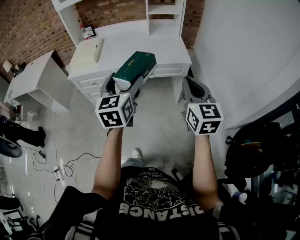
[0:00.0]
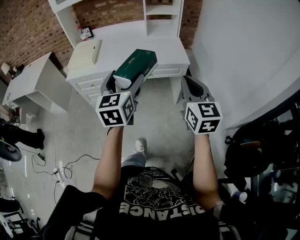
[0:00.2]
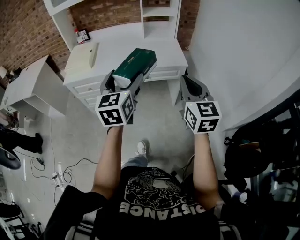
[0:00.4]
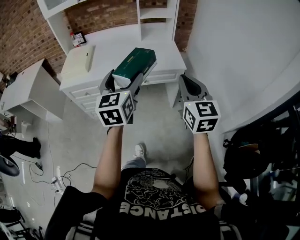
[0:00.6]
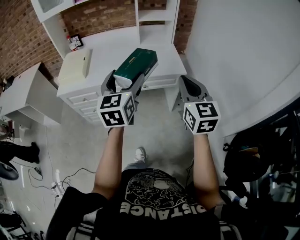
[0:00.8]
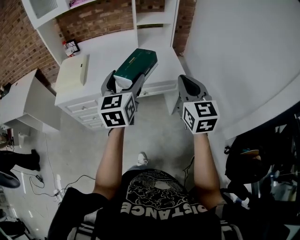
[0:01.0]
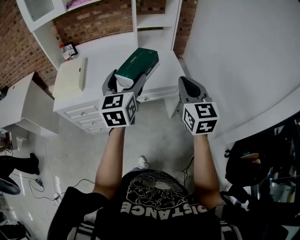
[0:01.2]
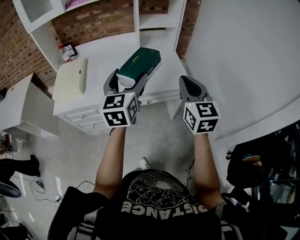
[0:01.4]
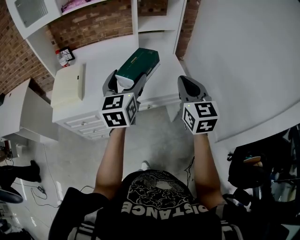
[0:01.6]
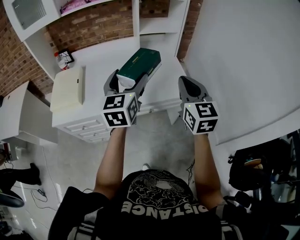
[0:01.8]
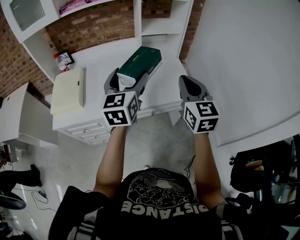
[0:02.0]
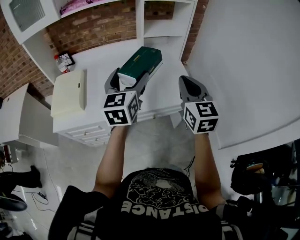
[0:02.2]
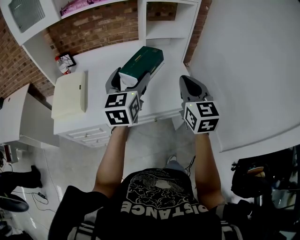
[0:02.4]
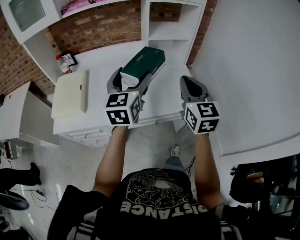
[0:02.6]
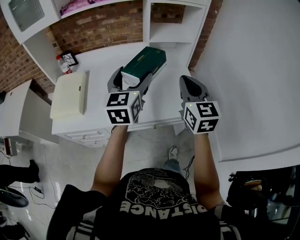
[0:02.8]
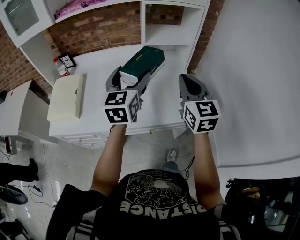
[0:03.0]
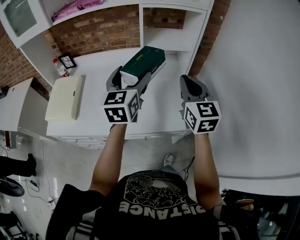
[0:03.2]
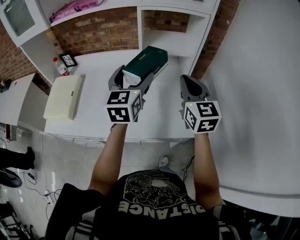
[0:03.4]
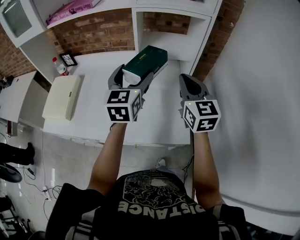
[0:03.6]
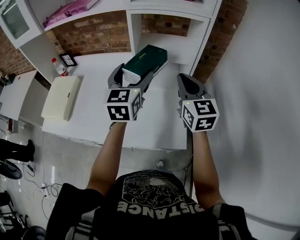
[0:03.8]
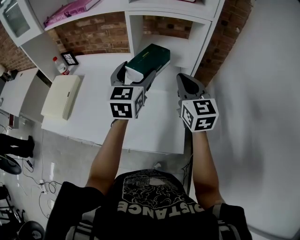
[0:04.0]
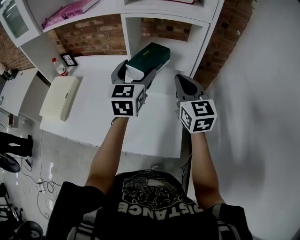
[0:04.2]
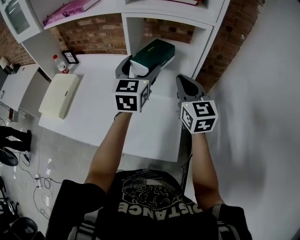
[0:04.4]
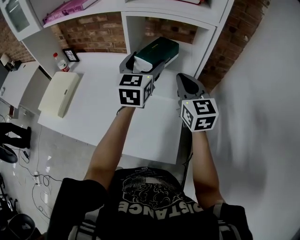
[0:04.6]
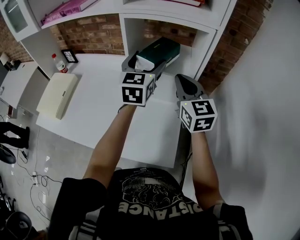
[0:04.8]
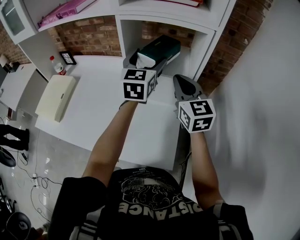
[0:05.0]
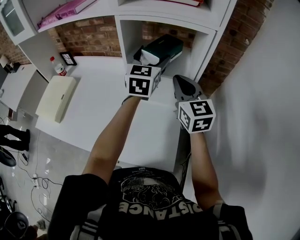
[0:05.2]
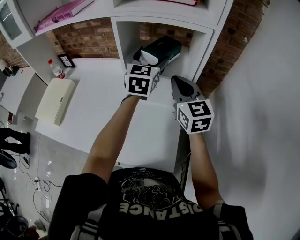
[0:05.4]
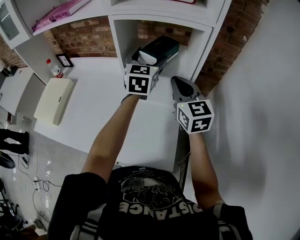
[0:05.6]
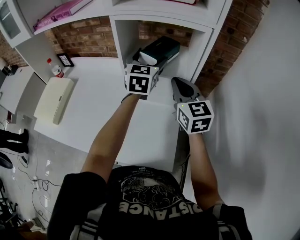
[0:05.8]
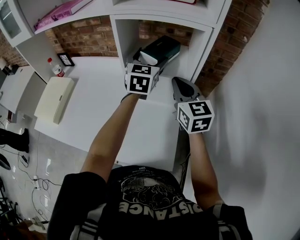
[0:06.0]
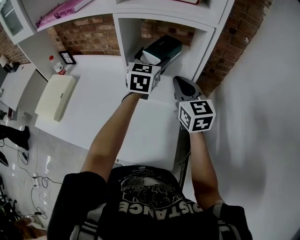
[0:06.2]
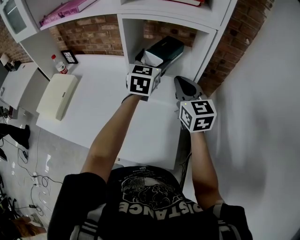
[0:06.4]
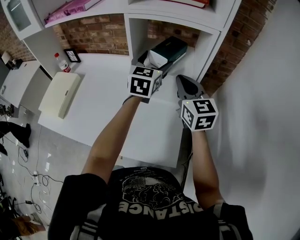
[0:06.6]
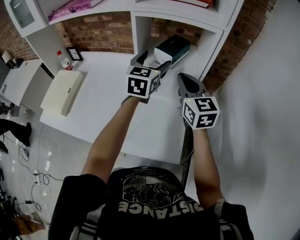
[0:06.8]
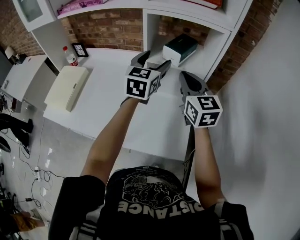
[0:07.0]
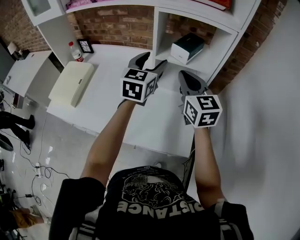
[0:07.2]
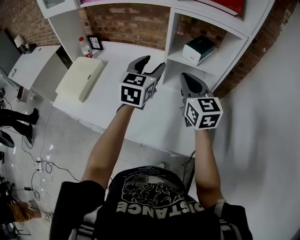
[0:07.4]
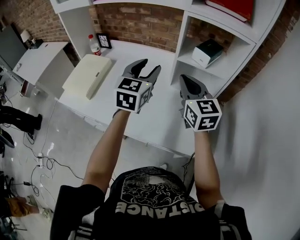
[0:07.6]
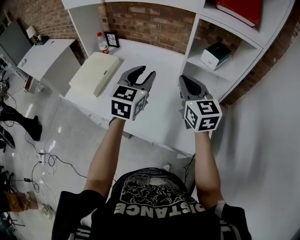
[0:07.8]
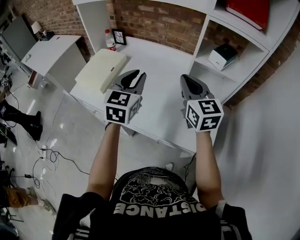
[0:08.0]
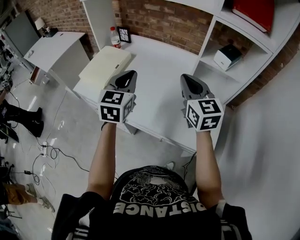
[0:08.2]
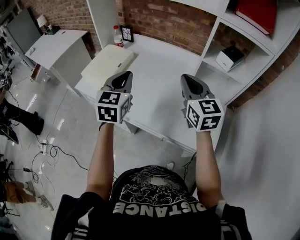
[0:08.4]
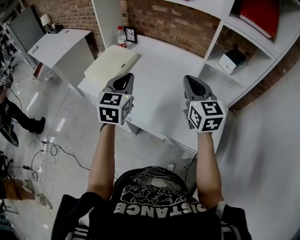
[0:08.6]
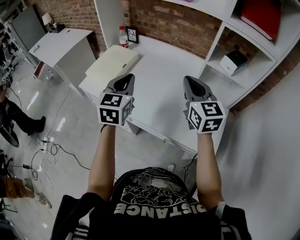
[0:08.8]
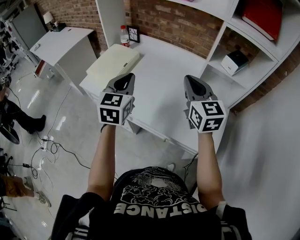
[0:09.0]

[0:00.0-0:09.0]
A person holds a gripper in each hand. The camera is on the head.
0.0 to 1.6 s: Both grippers travel together forward, some 30 cm.
1.6 to 3.0 s: Both grippers move forward, some 20 cm.
3.0 to 4.4 s: Both grippers move forward and to the right, about 25 cm.
4.4 to 6.0 s: The right gripper ends up some 5 cm from where it was. The left gripper shifts some 10 cm forward and to the right.
6.0 to 7.6 s: Both grippers move to the left and backward, roughly 25 cm. The left gripper closes its fingers.
7.6 to 9.0 s: The right gripper is displaced to the left by roughly 10 cm; the left gripper heads to the left, covering some 20 cm, and closes.

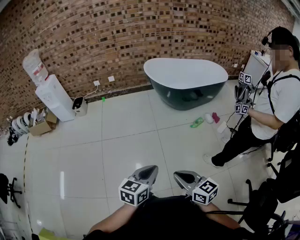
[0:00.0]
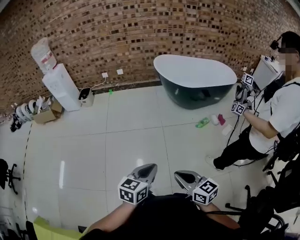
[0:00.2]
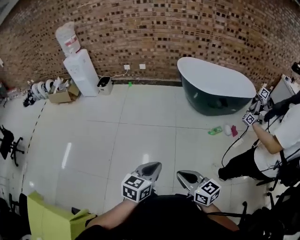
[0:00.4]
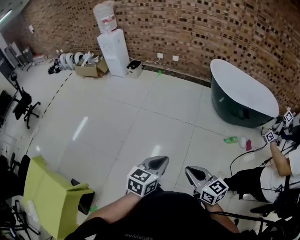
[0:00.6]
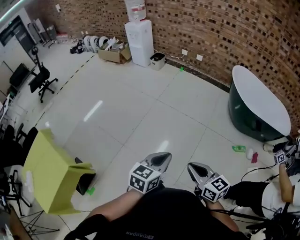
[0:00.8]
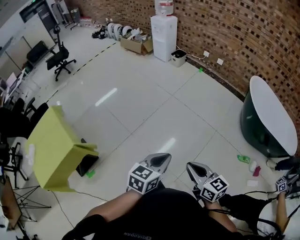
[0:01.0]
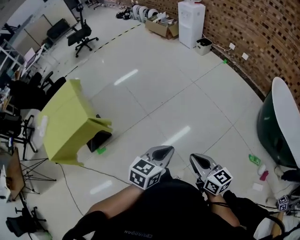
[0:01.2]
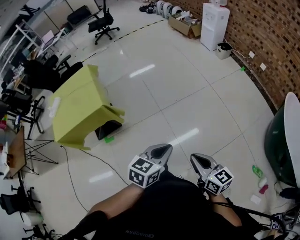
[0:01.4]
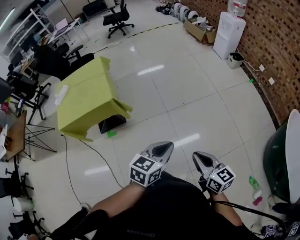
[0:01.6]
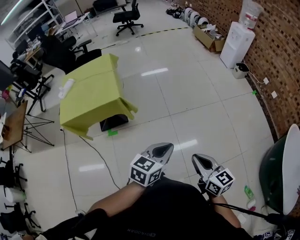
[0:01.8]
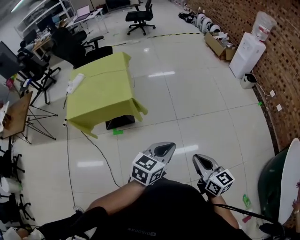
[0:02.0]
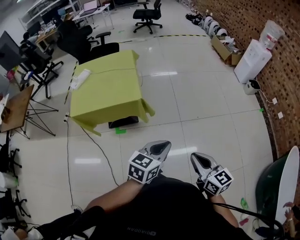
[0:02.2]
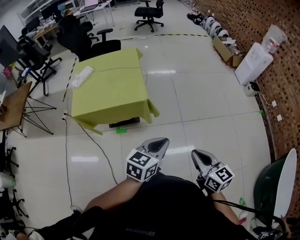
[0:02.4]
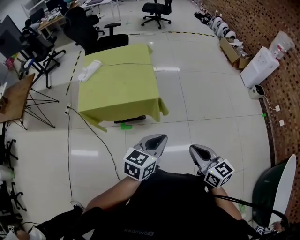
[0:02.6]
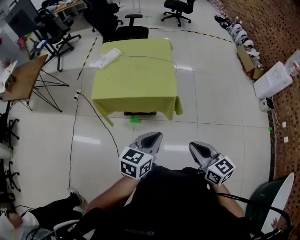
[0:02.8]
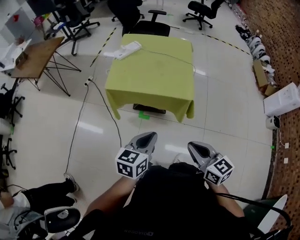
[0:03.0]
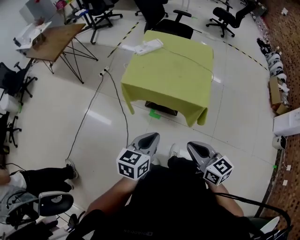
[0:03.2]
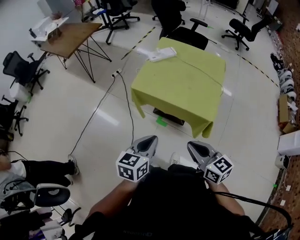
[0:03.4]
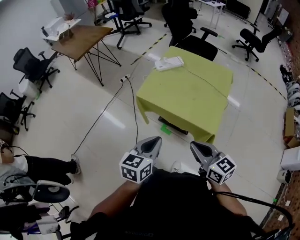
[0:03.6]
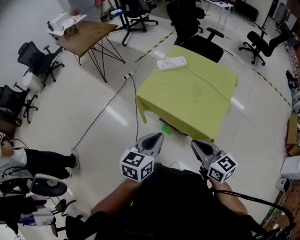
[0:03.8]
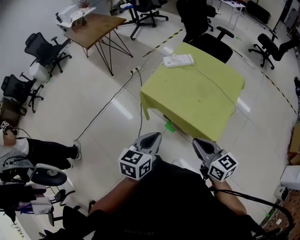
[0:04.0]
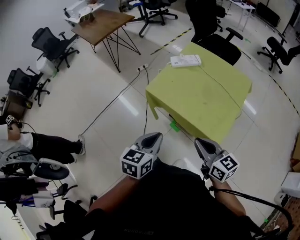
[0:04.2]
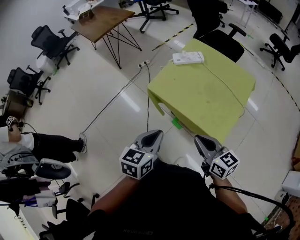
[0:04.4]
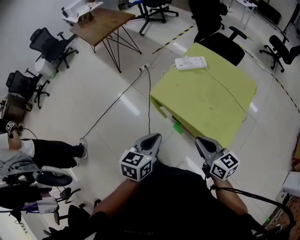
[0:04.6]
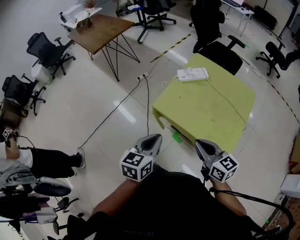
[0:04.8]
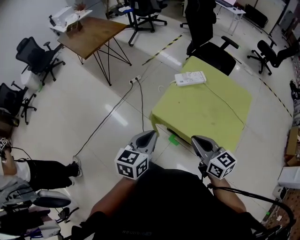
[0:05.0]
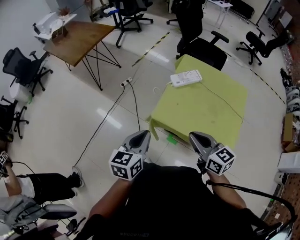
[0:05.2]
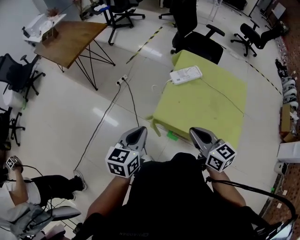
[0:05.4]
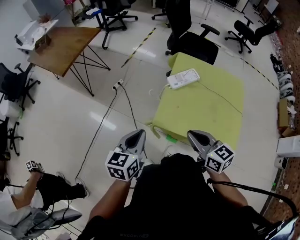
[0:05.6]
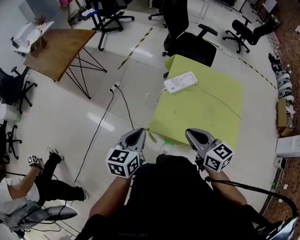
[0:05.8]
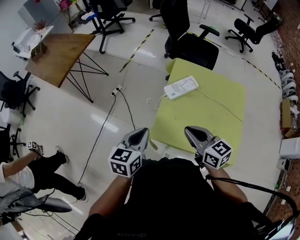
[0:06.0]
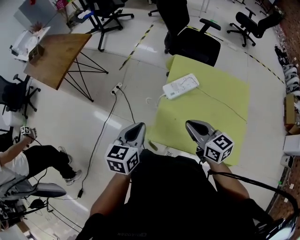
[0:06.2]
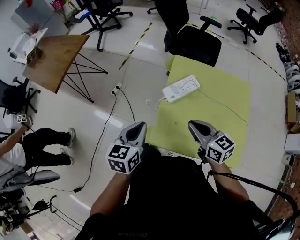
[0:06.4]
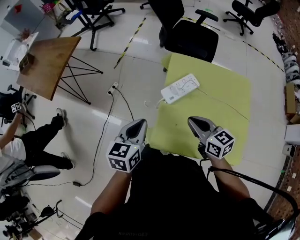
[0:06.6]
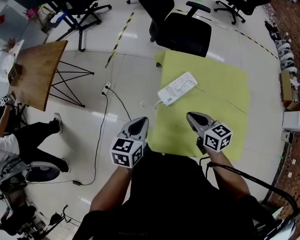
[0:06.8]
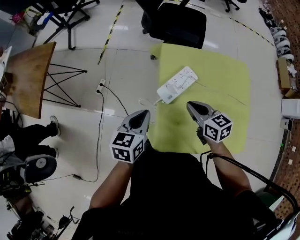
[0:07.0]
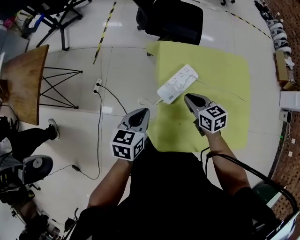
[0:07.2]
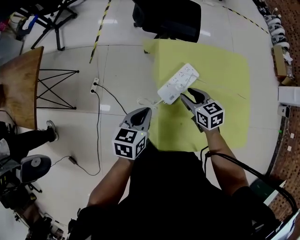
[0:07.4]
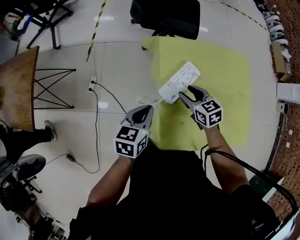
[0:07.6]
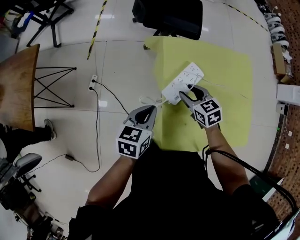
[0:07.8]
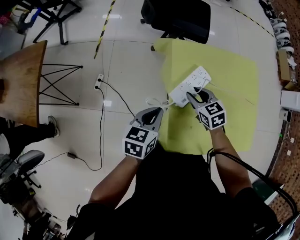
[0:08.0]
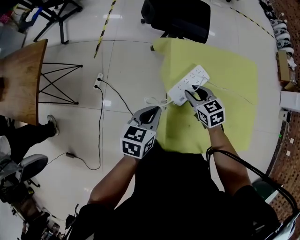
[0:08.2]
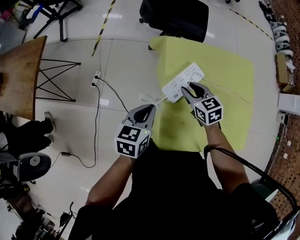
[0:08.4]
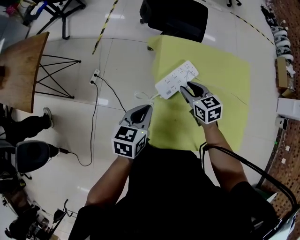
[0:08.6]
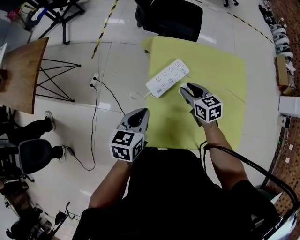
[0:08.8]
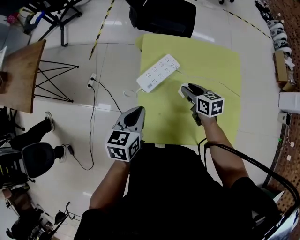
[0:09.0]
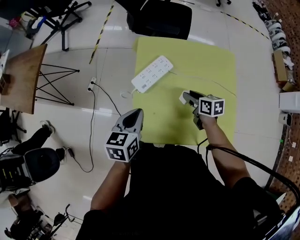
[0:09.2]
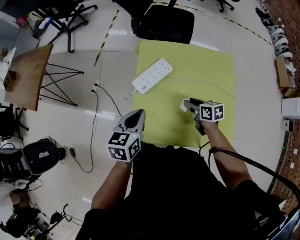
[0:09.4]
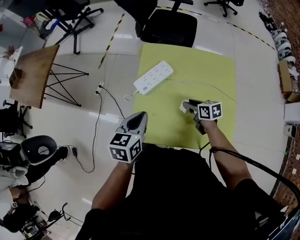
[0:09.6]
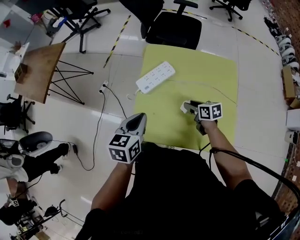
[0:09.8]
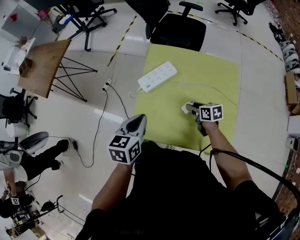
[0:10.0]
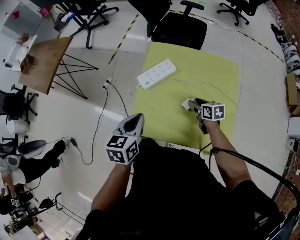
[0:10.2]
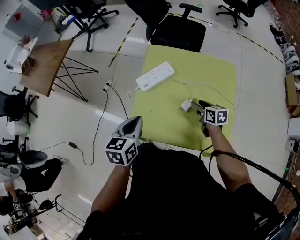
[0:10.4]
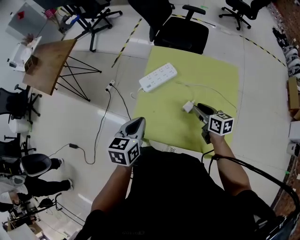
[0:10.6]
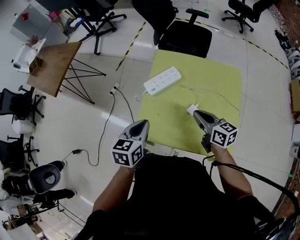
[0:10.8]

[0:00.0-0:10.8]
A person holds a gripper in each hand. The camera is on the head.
0.0 to 1.6 s: The right gripper shifts by roughly 25 cm, and turns by some 70 degrees, while the left gripper ends up some 30 cm from where it was, and swivels roughly 70 degrees.
1.6 to 3.0 s: Both grippers are carried about 50 cm. The right gripper changes its angle by roughly 40 degrees. Meanwhile the left gripper changes its angle by approximately 40 degrees.
3.0 to 4.6 s: The left gripper shifts by roughly 20 cm, and swivels approximately 30 degrees; the right gripper ends up some 25 cm from where it was, and turns by about 30 degrees.
4.6 to 6.2 s: Both grippers move forward, about 30 cm.
6.2 to 7.8 s: The right gripper shifts by approximately 30 cm, turns by approximately 30 degrees, and opens up. Meanwhile the left gripper shifts by approximately 25 cm, and turns by roughly 30 degrees.
7.8 to 9.2 s: The right gripper travels to the right by some 15 cm, and changes its angle by approximately 30 degrees. Meanwhile the left gripper travels to the right, backward and upward by some 15 cm.
9.2 to 10.8 s: The left gripper goes some 10 cm backward. The right gripper moves upward and backward, some 15 cm, rotates approximately 30 degrees, and closes its fingers.

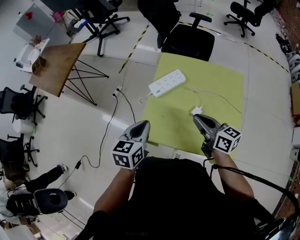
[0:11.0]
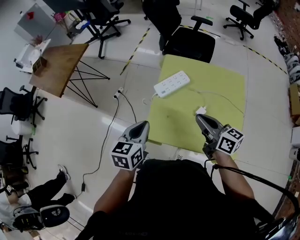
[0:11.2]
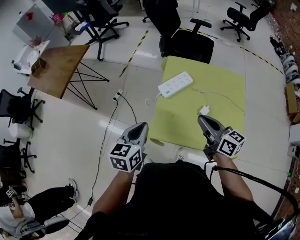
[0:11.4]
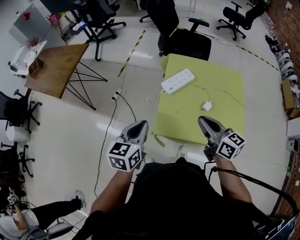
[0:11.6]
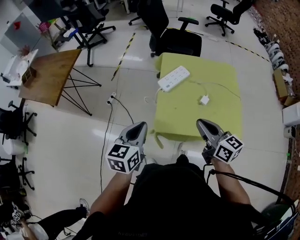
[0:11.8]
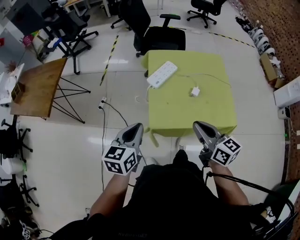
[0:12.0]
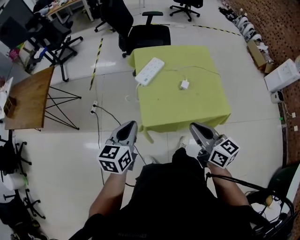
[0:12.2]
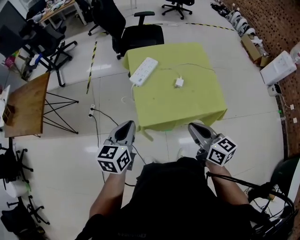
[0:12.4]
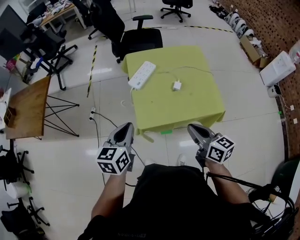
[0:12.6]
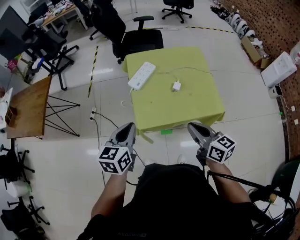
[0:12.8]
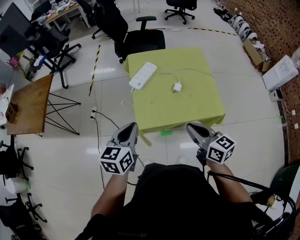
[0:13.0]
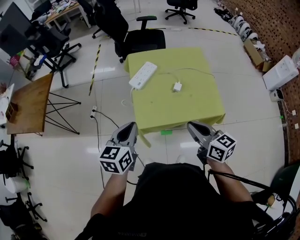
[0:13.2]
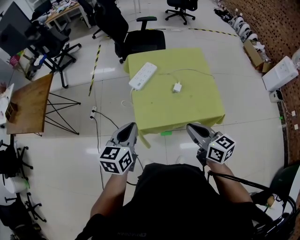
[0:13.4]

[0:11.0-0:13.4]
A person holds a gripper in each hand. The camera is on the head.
11.0 to 12.2 s: The right gripper moves backward and to the left, some 20 cm, and rotates roughly 30 degrees. The left gripper moves to the left and backward, approximately 15 cm, and changes its angle by roughly 20 degrees.
12.2 to 13.4 s: The grippers move only a little.

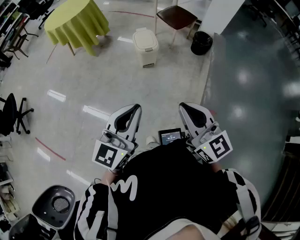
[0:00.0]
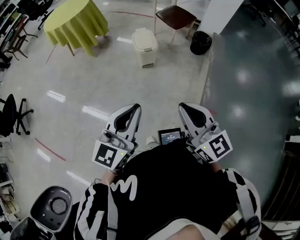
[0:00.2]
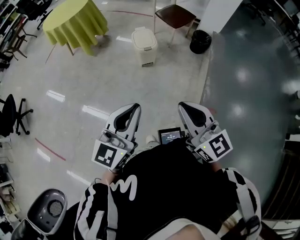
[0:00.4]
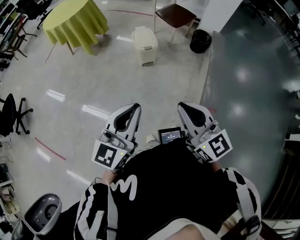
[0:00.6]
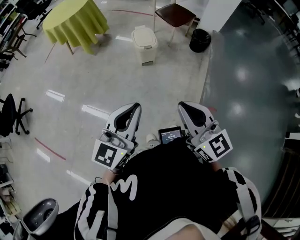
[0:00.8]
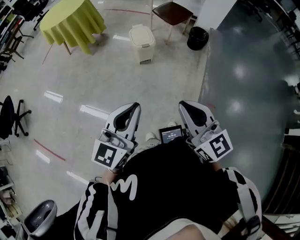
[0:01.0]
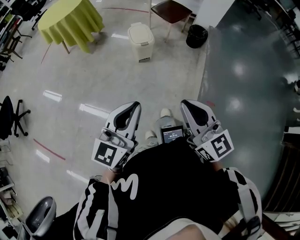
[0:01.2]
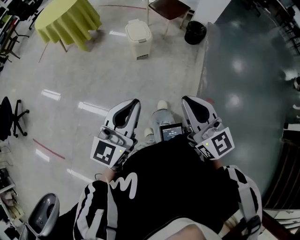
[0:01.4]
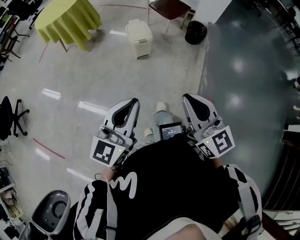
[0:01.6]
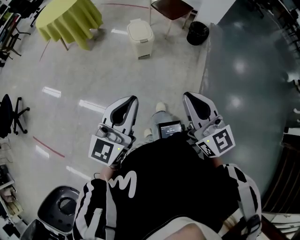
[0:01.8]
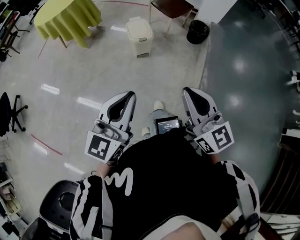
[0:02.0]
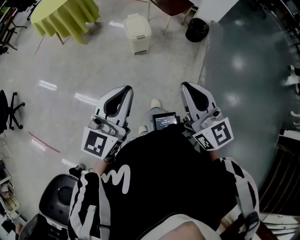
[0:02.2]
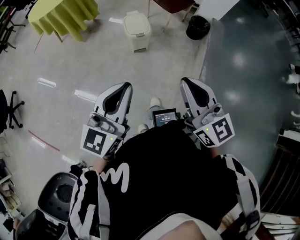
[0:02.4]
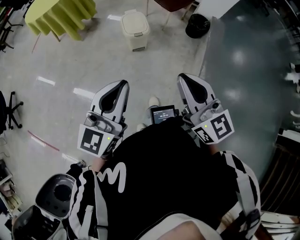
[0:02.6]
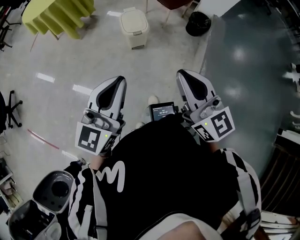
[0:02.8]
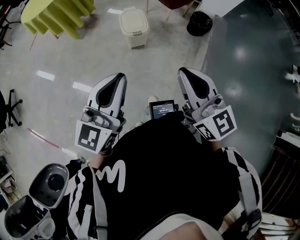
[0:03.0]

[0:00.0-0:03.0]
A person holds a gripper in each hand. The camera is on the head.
0.0 to 1.6 s: The grippers move only a little.
1.6 to 3.0 s: The two grippers go roughly 20 cm forward.
